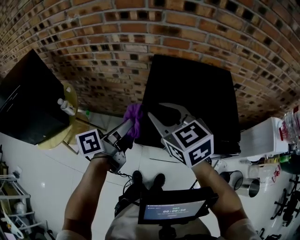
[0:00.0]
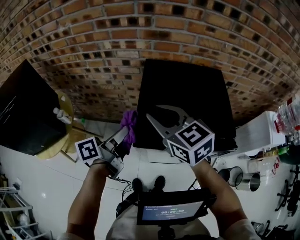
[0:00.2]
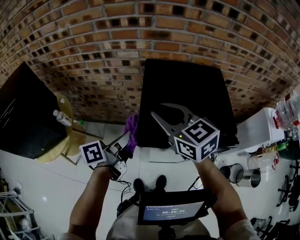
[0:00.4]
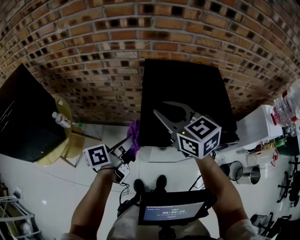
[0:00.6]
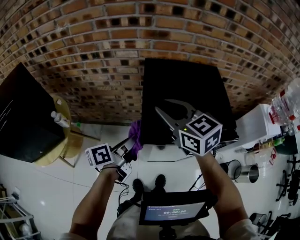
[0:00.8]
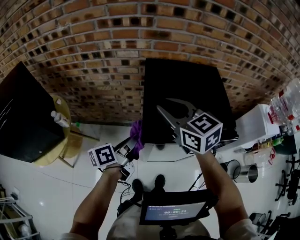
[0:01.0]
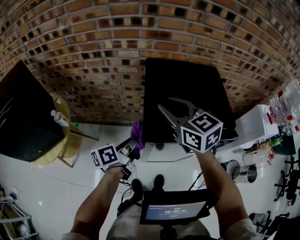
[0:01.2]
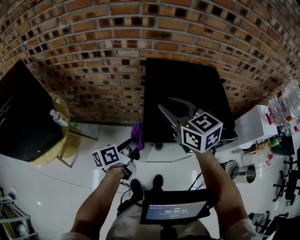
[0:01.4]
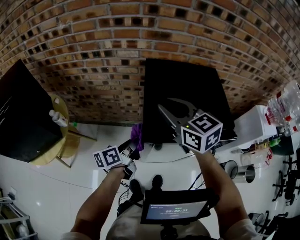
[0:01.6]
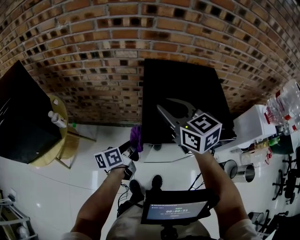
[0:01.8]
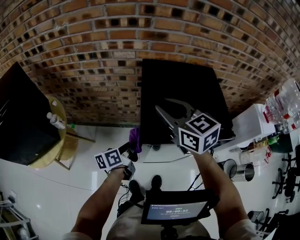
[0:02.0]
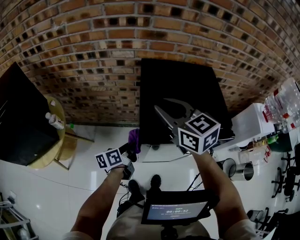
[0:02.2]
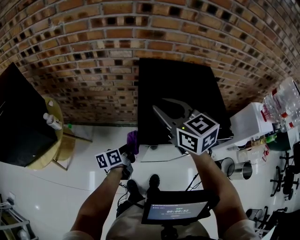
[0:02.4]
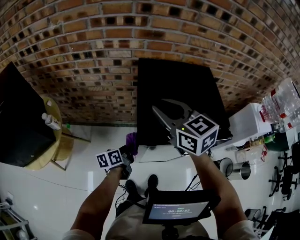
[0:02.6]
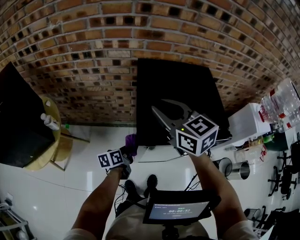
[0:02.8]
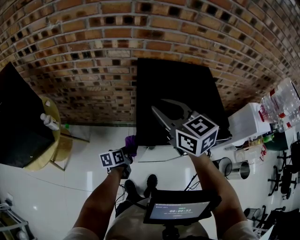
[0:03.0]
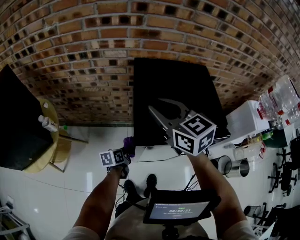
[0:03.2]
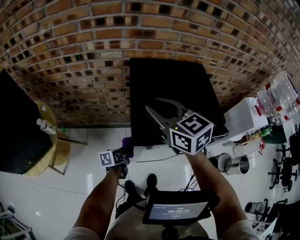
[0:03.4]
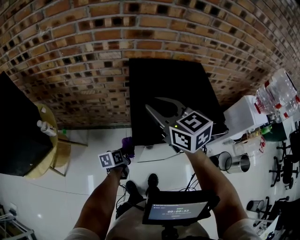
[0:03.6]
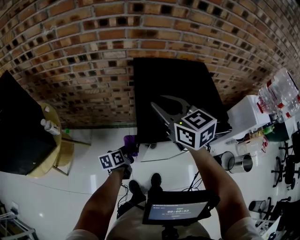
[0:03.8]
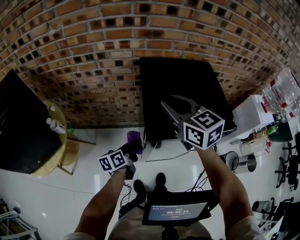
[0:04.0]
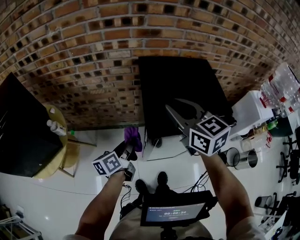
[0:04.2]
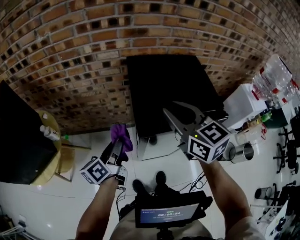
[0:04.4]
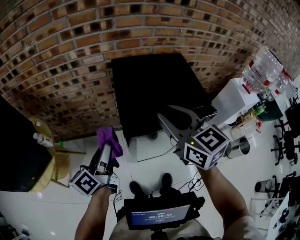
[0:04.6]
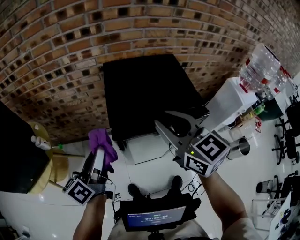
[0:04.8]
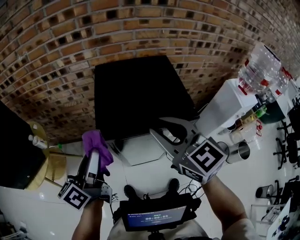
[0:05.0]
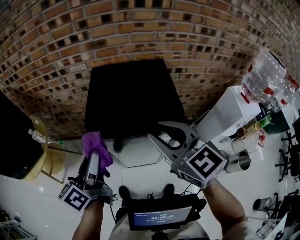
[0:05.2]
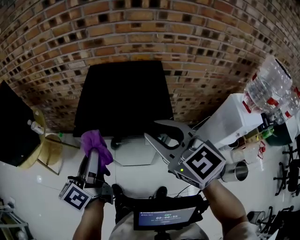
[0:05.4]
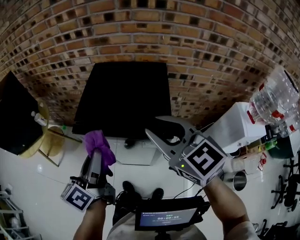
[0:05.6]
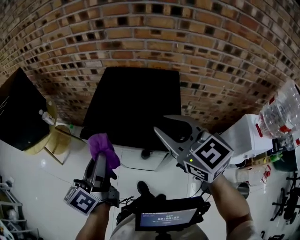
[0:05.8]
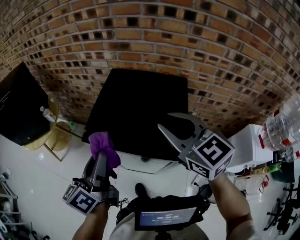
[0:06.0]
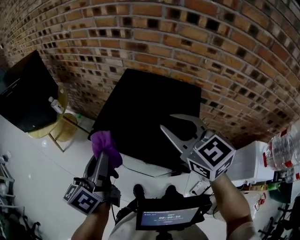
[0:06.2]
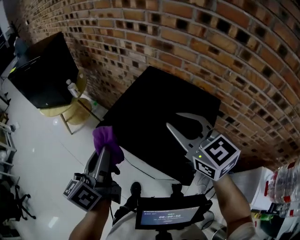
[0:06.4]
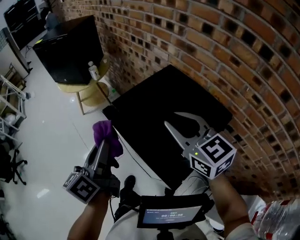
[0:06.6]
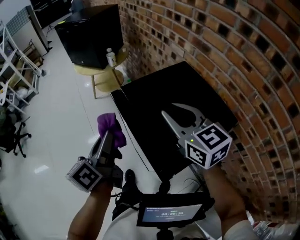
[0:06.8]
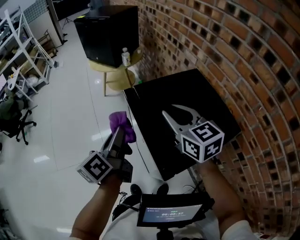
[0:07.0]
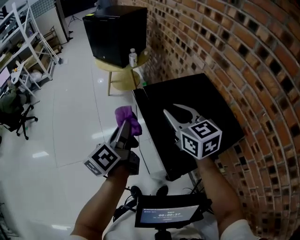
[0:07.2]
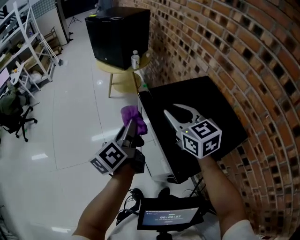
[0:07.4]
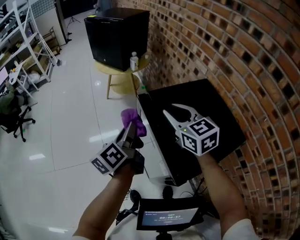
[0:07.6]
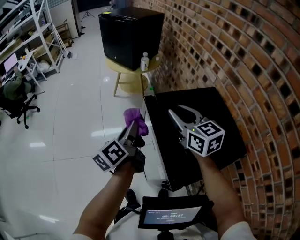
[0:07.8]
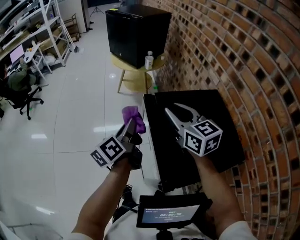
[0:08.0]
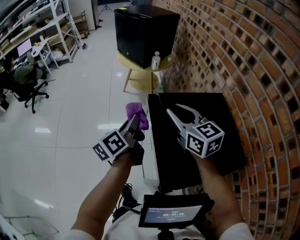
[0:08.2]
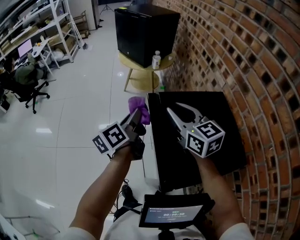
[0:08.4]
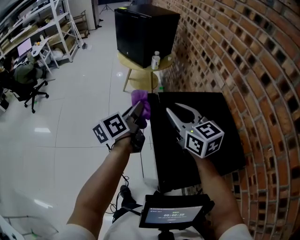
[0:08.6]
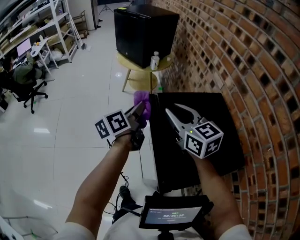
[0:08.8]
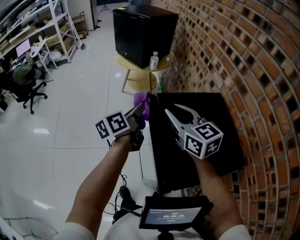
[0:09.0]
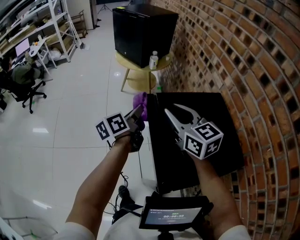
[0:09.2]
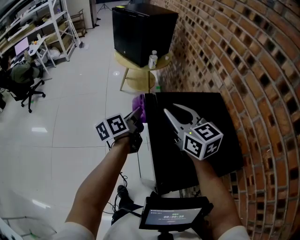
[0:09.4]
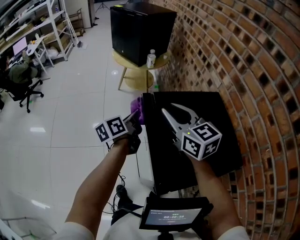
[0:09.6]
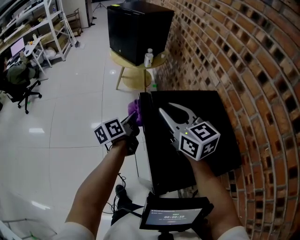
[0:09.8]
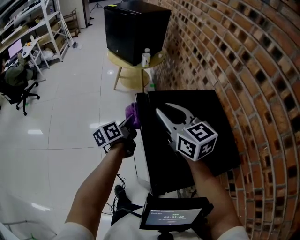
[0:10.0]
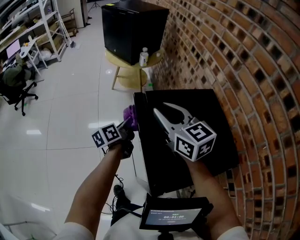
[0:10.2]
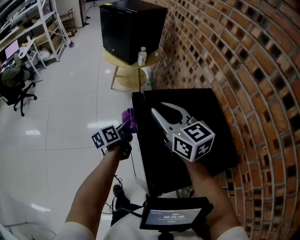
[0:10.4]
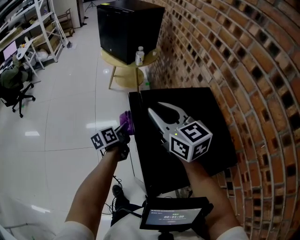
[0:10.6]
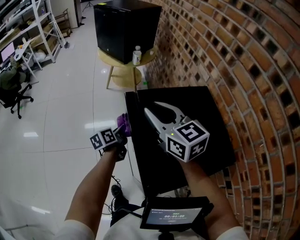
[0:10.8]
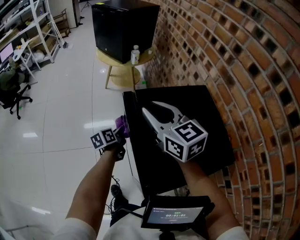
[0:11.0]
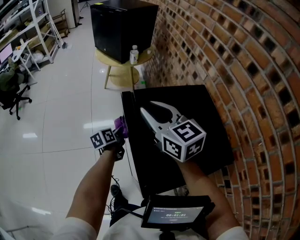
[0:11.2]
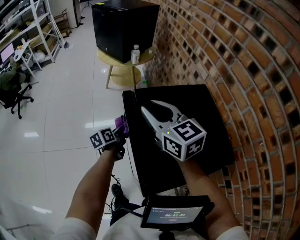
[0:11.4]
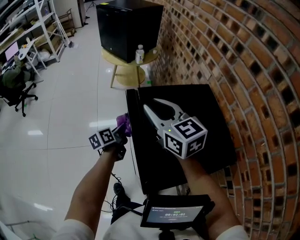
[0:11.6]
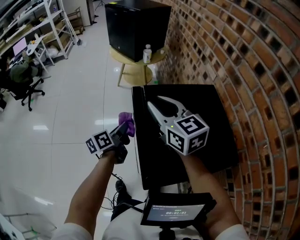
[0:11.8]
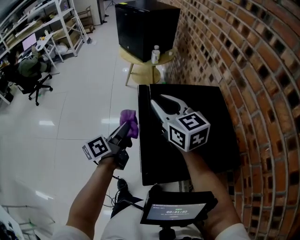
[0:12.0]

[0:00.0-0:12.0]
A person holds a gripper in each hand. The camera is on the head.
0:00.0 to 0:01.6: The left gripper is displaced downward by some 10 cm.
0:01.6 to 0:03.0: The left gripper moves downward, some 15 cm, and swivels about 20 degrees.
0:03.0 to 0:04.4: The right gripper is displaced backward by about 5 cm, while the left gripper moves upward, roughly 20 cm, and rotates roughly 30 degrees.
0:04.4 to 0:06.0: The right gripper ends up some 15 cm from where it was, and swivels about 30 degrees; the left gripper shifts by some 25 cm, and rotates some 30 degrees.
0:06.0 to 0:07.6: The right gripper changes place by about 15 cm, and changes its angle by about 50 degrees. The left gripper is displaced downward by about 5 cm, and changes its angle by some 60 degrees.
0:07.6 to 0:09.0: The left gripper shifts approximately 5 cm forward.
0:09.0 to 0:10.4: The left gripper travels downward by roughly 15 cm.
0:10.4 to 0:12.0: The left gripper is displaced upward and backward by roughly 15 cm.

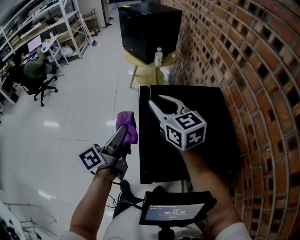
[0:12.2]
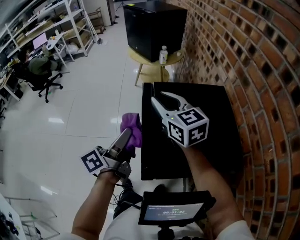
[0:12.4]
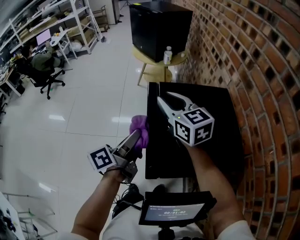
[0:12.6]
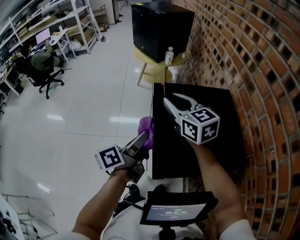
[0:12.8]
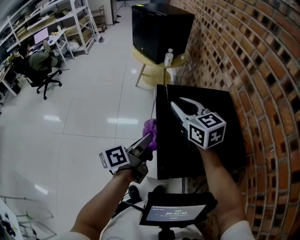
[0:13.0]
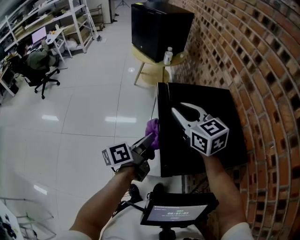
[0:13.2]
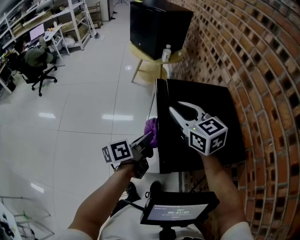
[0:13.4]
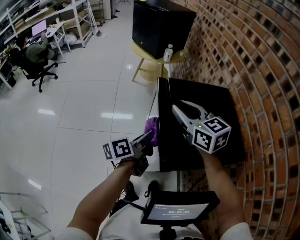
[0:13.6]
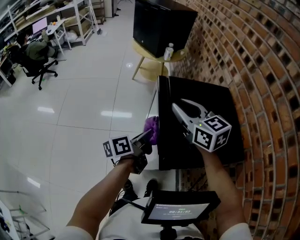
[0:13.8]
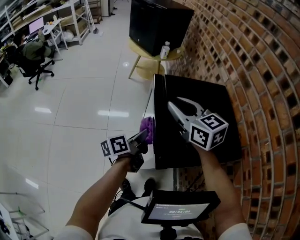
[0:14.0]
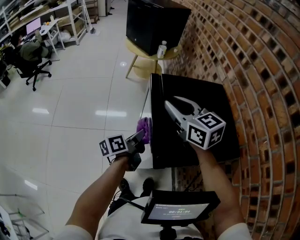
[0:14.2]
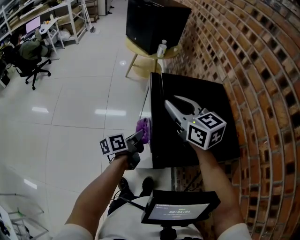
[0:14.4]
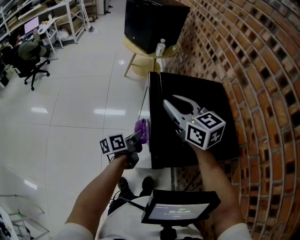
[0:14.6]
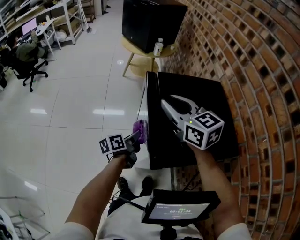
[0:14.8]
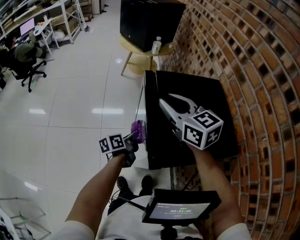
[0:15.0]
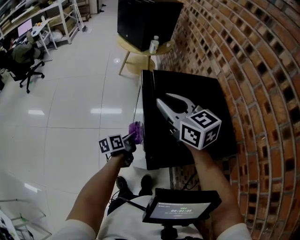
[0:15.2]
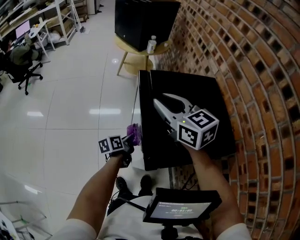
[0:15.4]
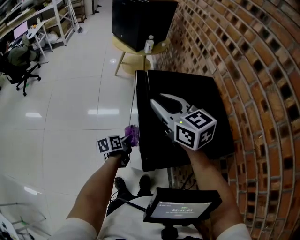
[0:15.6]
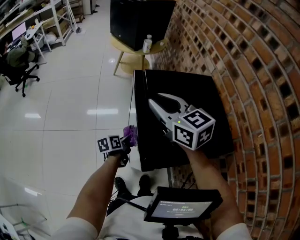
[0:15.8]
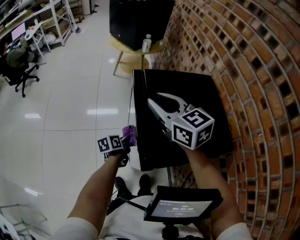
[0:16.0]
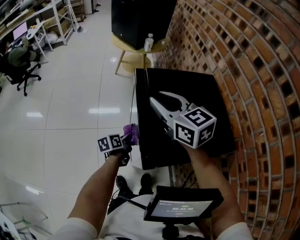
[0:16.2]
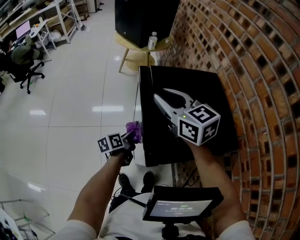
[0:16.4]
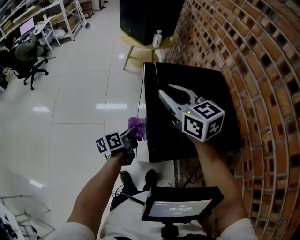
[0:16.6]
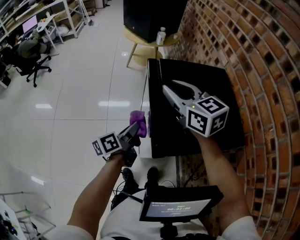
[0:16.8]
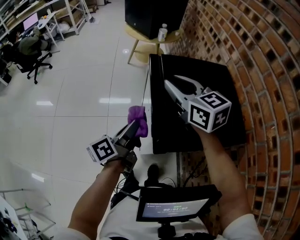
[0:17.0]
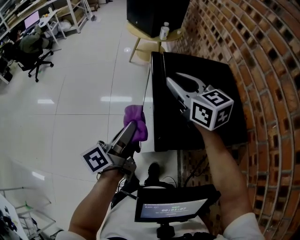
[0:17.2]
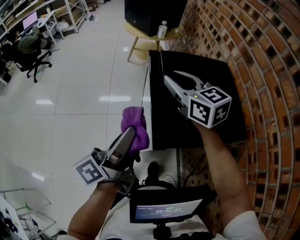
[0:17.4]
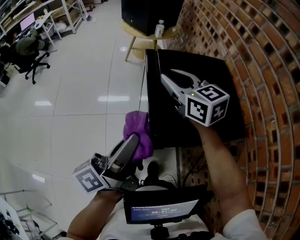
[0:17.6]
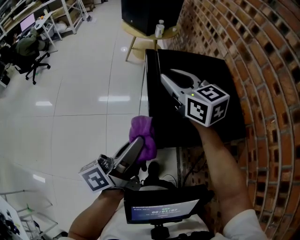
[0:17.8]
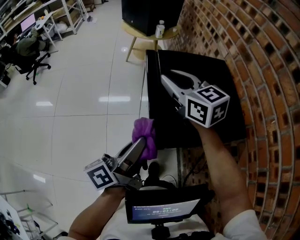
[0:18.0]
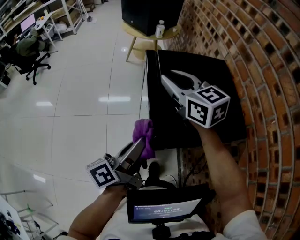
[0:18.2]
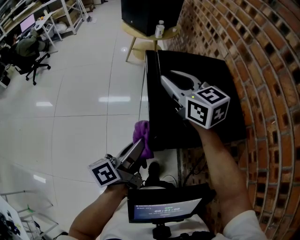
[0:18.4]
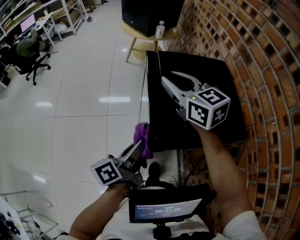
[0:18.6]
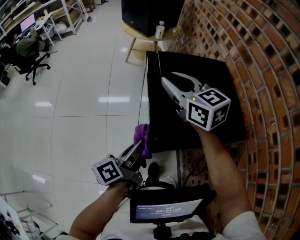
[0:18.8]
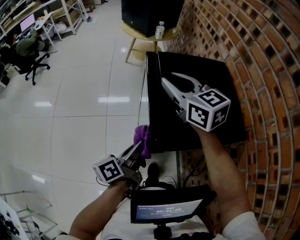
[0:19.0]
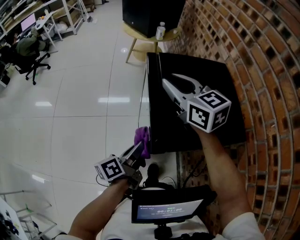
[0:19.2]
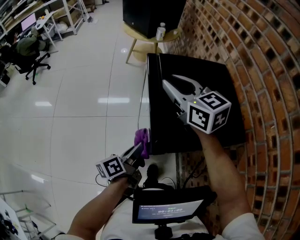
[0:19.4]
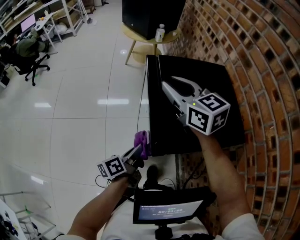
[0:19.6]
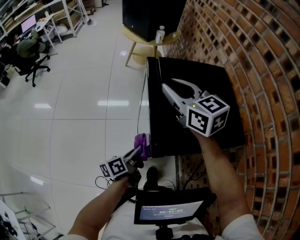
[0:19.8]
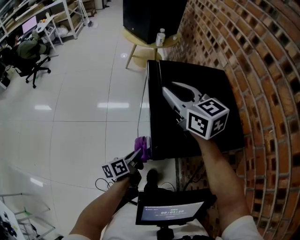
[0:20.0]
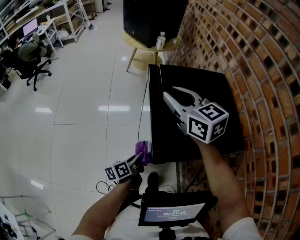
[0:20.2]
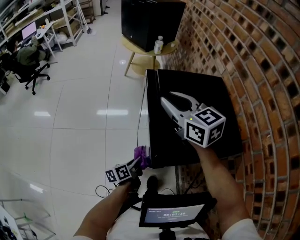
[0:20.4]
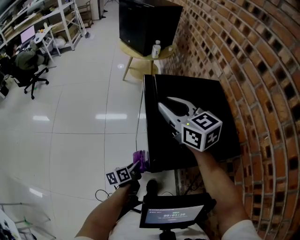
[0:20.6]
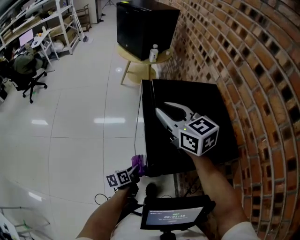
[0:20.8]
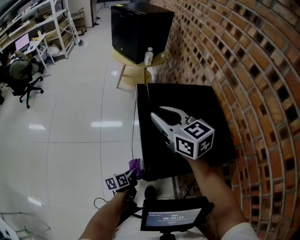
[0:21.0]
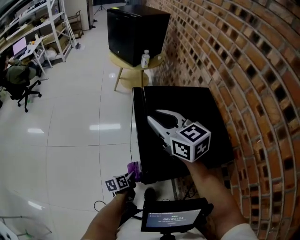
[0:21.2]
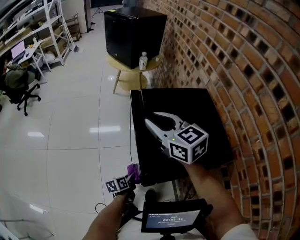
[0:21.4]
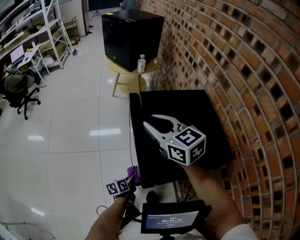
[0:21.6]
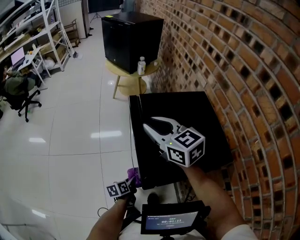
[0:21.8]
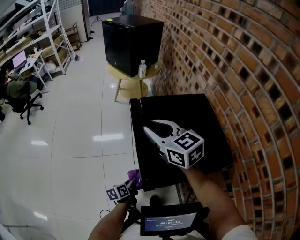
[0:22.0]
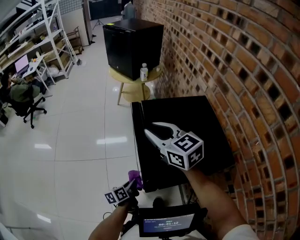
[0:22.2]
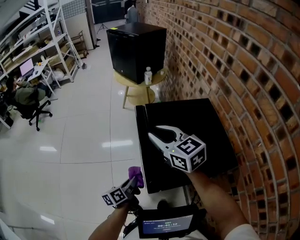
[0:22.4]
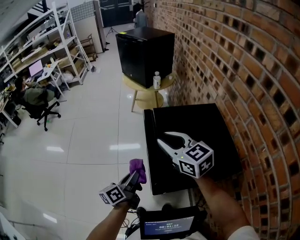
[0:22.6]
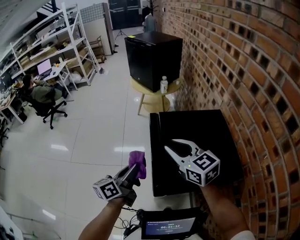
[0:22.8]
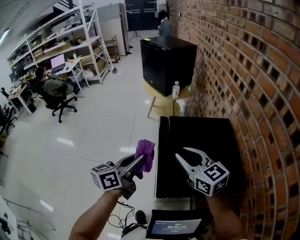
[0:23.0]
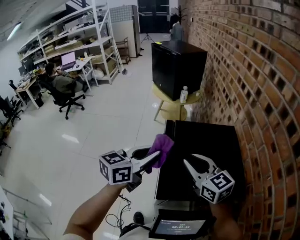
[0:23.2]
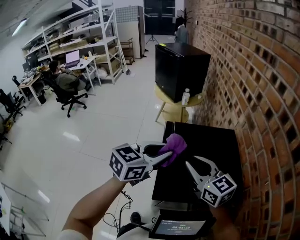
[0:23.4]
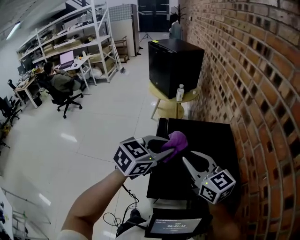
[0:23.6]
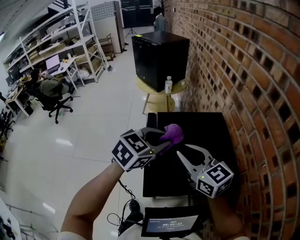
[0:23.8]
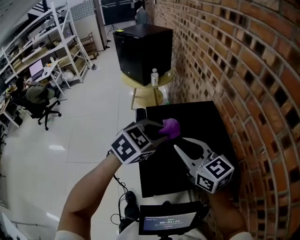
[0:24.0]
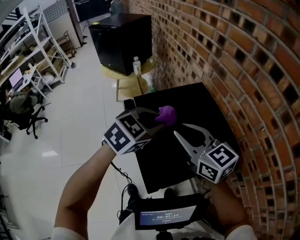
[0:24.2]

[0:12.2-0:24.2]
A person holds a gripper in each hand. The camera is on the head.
0:12.2 to 0:13.8: The right gripper ends up about 5 cm from where it was. The left gripper travels downward by about 10 cm.
0:13.8 to 0:15.2: The left gripper shifts about 15 cm downward.
0:15.2 to 0:16.6: The grippers stay close to where they were, moving slightly.
0:16.6 to 0:18.2: The left gripper goes roughly 20 cm upward and backward, and swivels some 20 degrees.
0:18.2 to 0:19.8: The left gripper goes approximately 20 cm downward.
0:19.8 to 0:21.2: The left gripper shifts about 15 cm downward, and swivels roughly 20 degrees.
0:21.2 to 0:22.6: The left gripper heads upward, covering approximately 25 cm, and swivels about 30 degrees.
0:22.6 to 0:24.2: The left gripper moves about 25 cm, and rotates around the line of its fingers by about 80 degrees, clockwise from behind; the right gripper moves approximately 10 cm.
